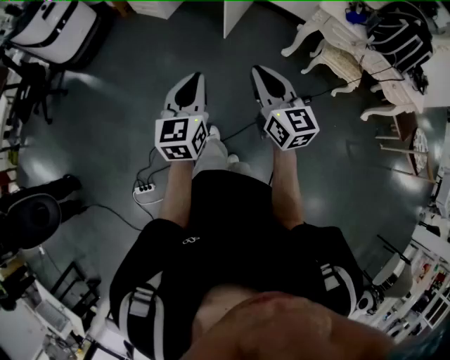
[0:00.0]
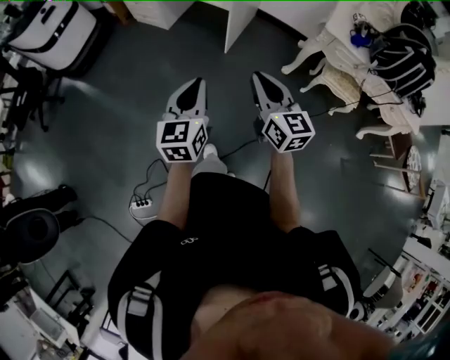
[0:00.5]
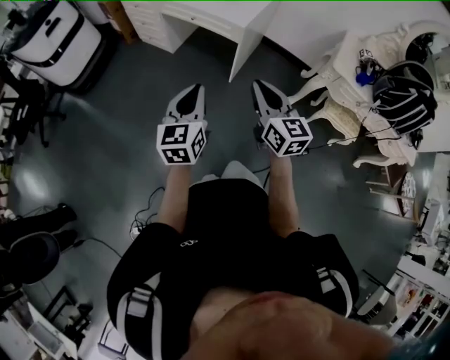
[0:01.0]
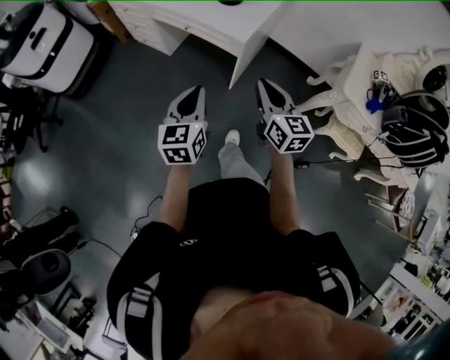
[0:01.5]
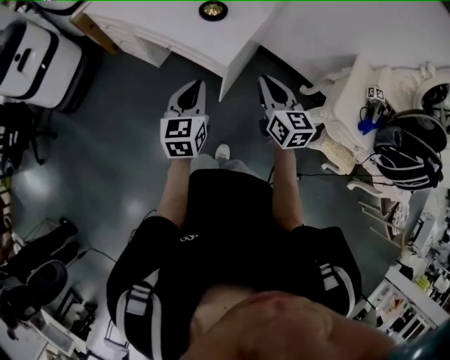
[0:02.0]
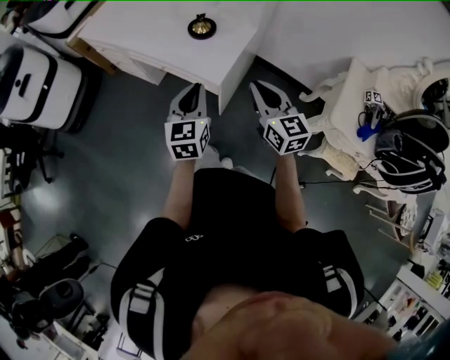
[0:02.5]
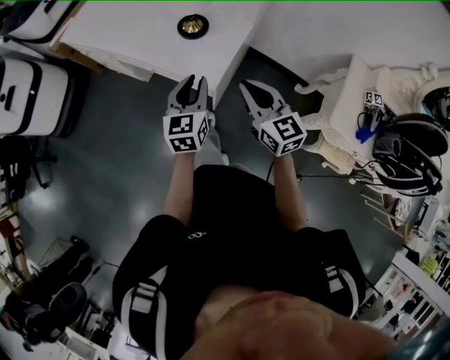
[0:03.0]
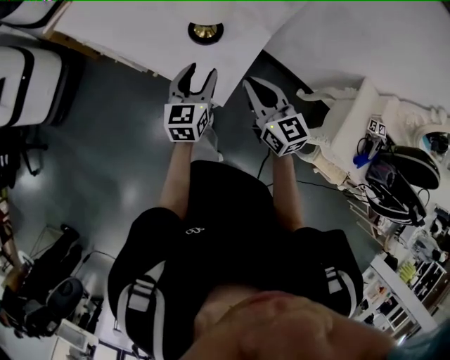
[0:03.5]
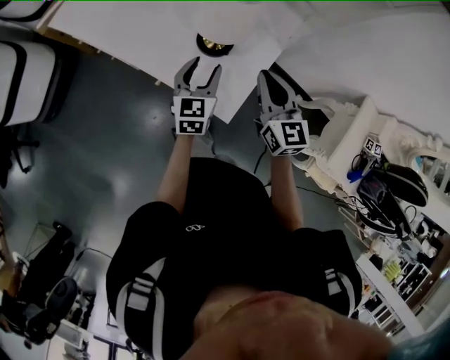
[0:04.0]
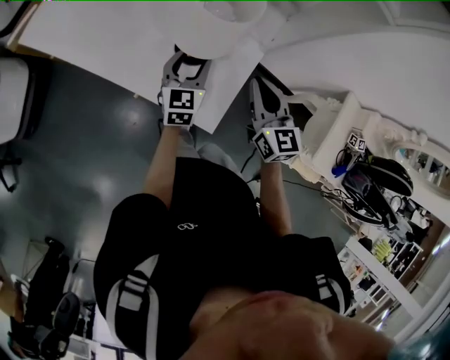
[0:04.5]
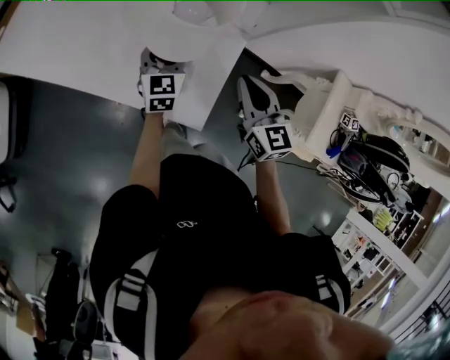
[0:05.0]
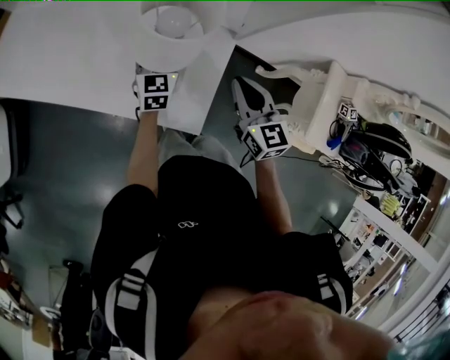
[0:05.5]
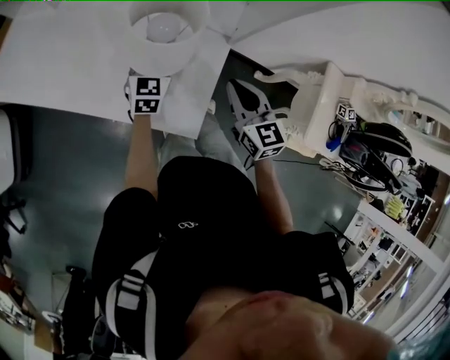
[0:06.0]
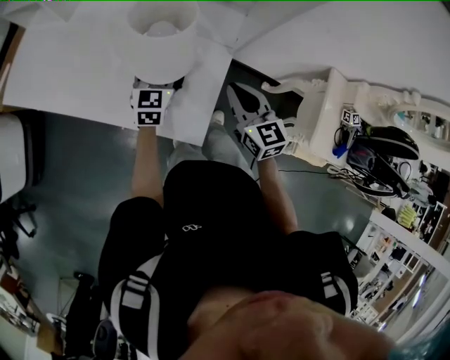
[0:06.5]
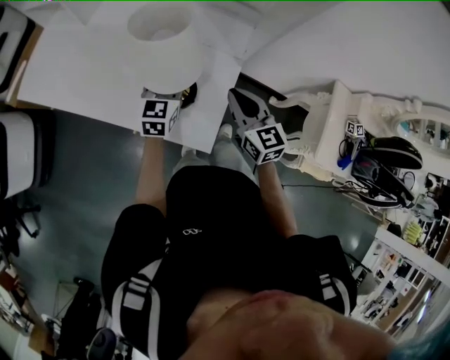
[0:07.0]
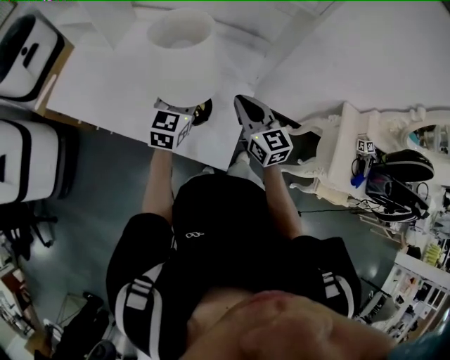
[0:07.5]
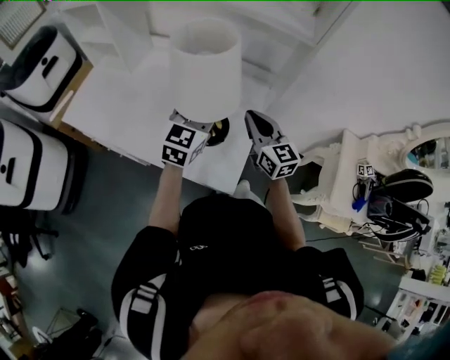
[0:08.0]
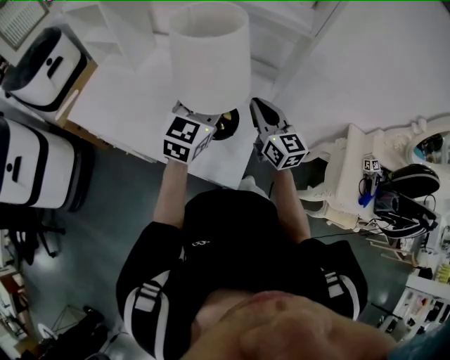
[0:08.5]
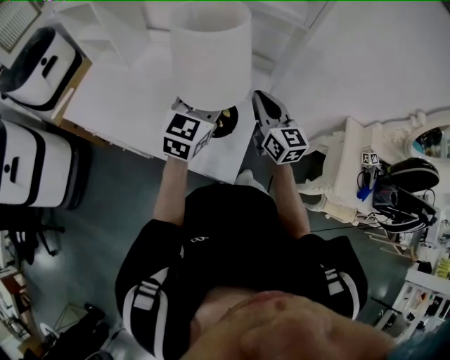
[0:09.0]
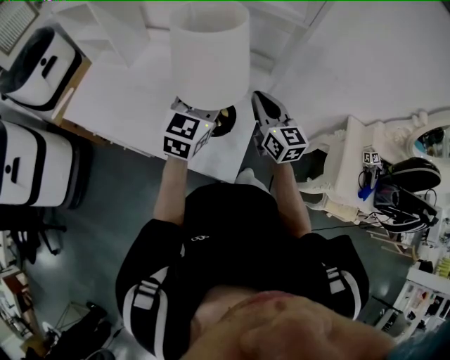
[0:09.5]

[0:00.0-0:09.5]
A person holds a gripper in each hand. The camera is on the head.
0:00.0 to 0:02.0: The pair of grippers is taken forward, roughly 60 cm.
0:02.0 to 0:04.0: The two grippers go roughly 35 cm forward. The left gripper opens.
0:04.0 to 0:05.5: The right gripper goes some 5 cm downward, while the left gripper moves forward and downward, roughly 15 cm.
0:05.5 to 0:07.5: The left gripper is displaced upward by about 20 cm. Meanwhile the right gripper moves upward, roughly 10 cm.
0:07.5 to 0:09.5: The left gripper is displaced upward by about 10 cm. Meanwhile the right gripper is displaced upward by about 5 cm.

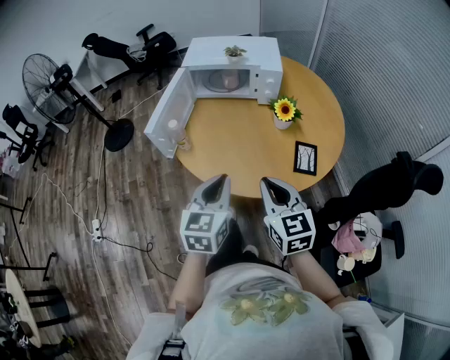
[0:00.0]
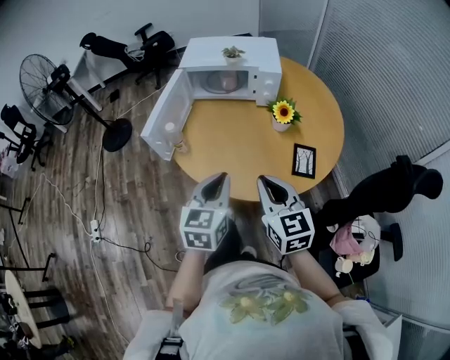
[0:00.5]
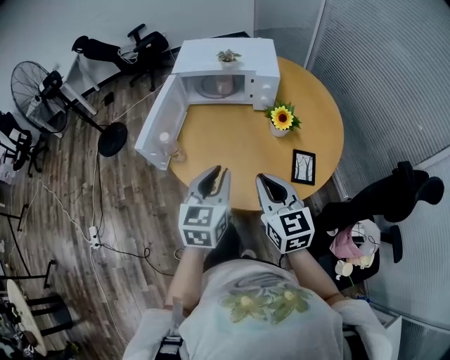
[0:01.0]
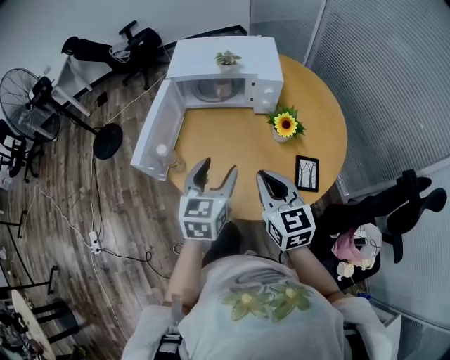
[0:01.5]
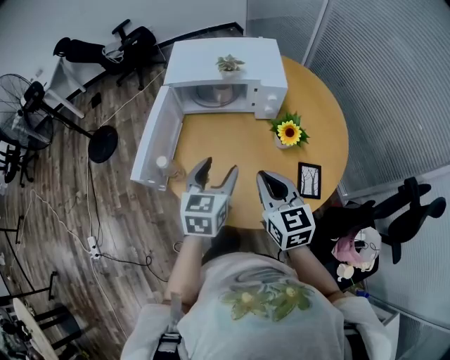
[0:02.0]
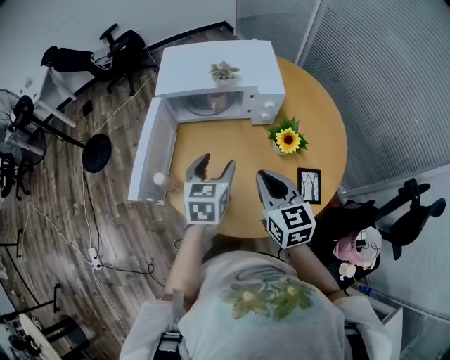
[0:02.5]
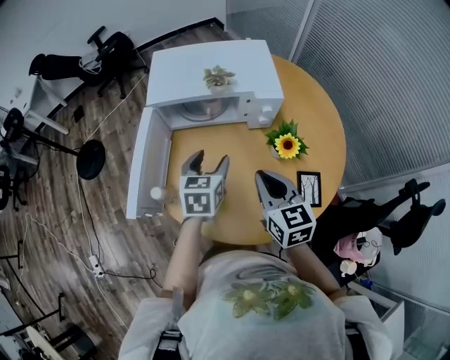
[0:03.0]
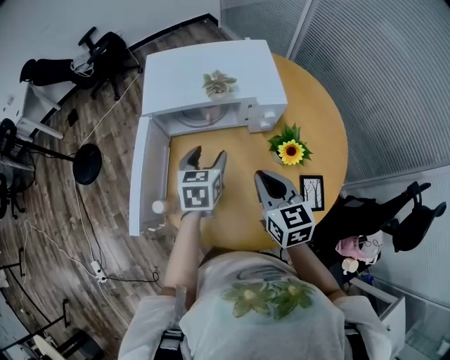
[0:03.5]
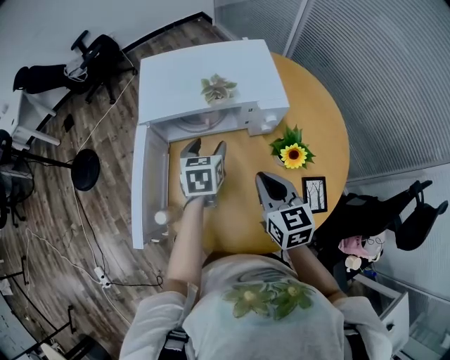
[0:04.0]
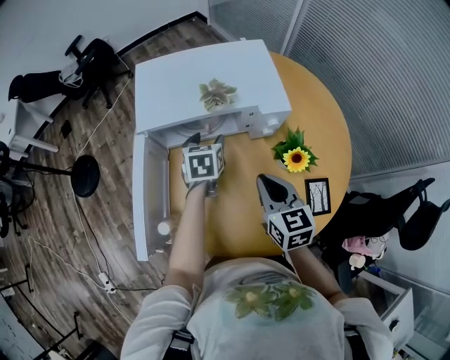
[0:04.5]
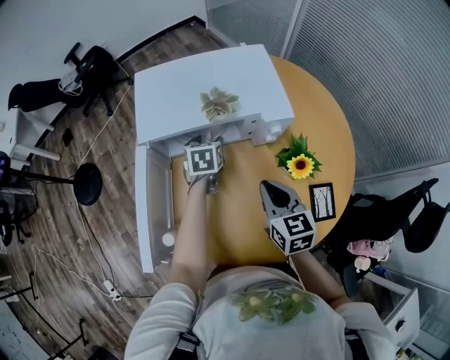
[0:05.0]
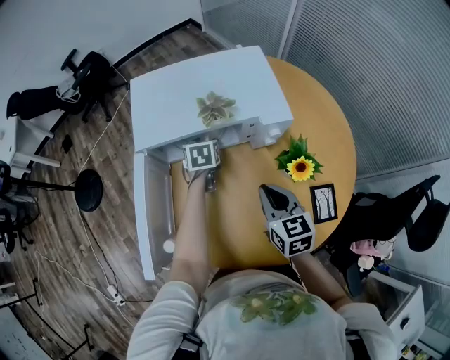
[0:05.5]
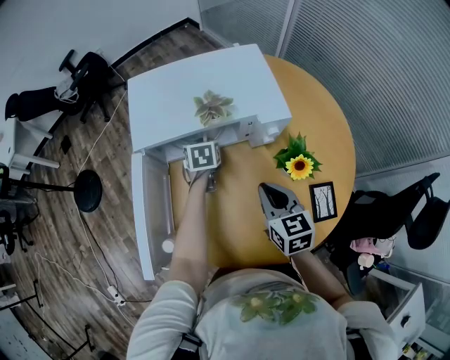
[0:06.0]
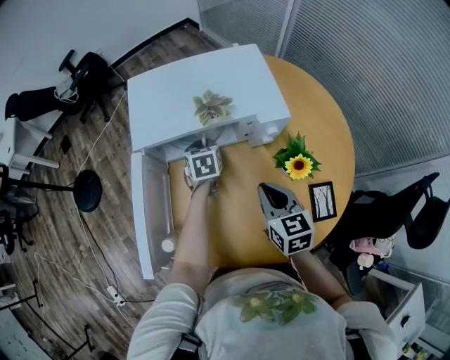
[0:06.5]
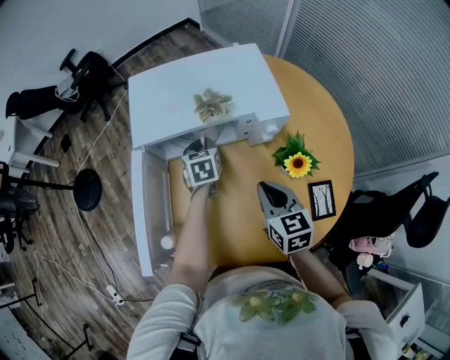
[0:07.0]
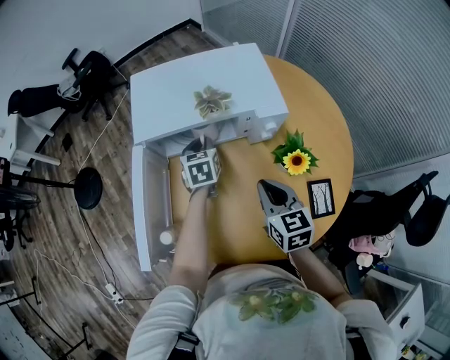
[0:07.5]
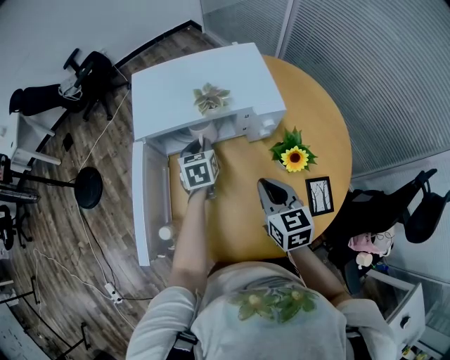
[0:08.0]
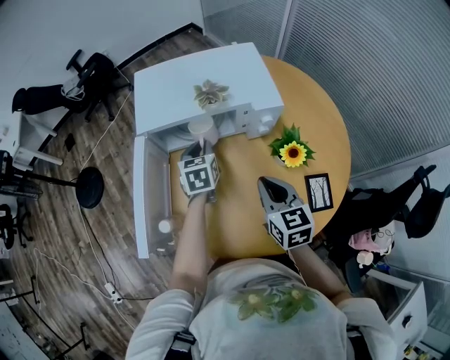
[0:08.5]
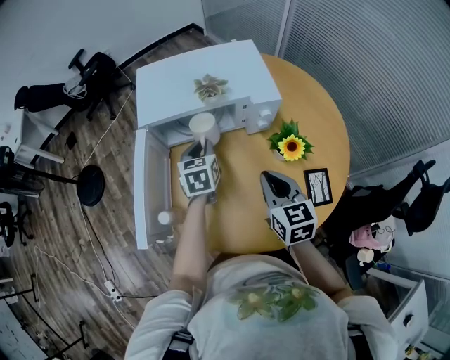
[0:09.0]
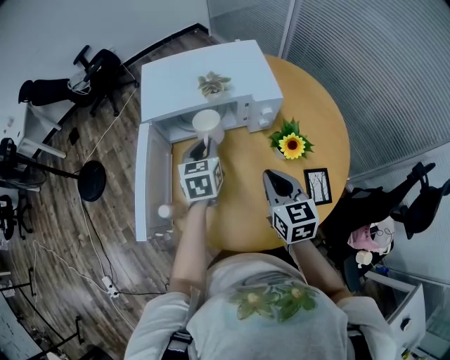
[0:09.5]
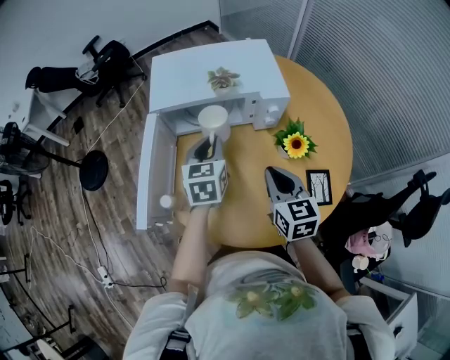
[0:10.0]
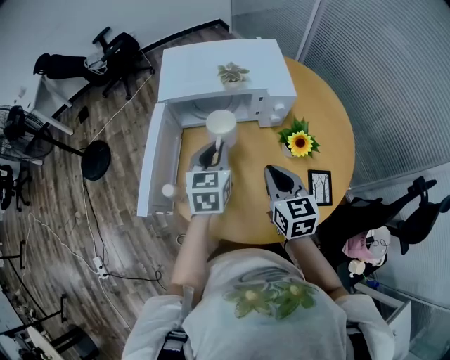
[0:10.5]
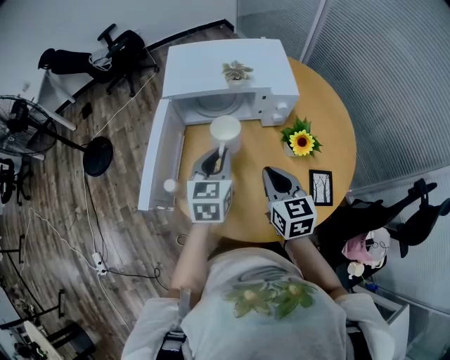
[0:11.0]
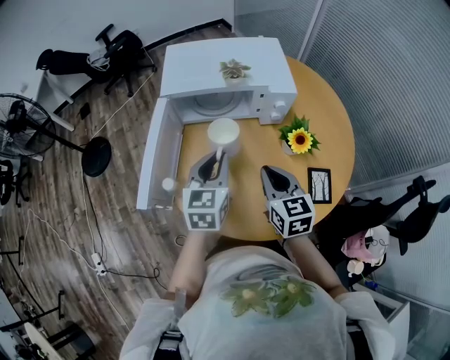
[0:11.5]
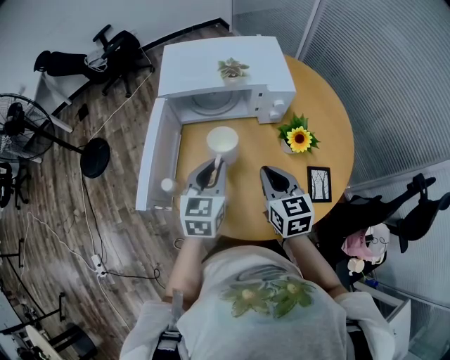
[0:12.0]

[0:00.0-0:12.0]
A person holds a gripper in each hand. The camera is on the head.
0:00.0 to 0:02.0: Both grippers move forward, some 20 cm. The left gripper opens.
0:02.0 to 0:04.0: The left gripper goes about 25 cm forward. Meanwhile the right gripper goes about 15 cm forward.
0:04.0 to 0:06.0: The left gripper heads forward and downward, covering approximately 15 cm, and closes its fingers. Meanwhile the right gripper moves downward, about 5 cm.
0:06.0 to 0:08.0: The left gripper moves upward, approximately 5 cm.
0:08.0 to 0:10.0: The right gripper moves approximately 5 cm; the left gripper is displaced backward and upward by roughly 15 cm.
0:10.0 to 0:12.0: The left gripper travels backward by approximately 10 cm.

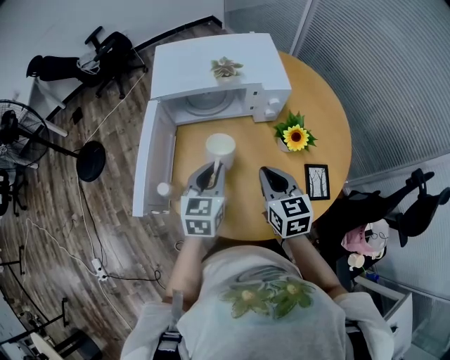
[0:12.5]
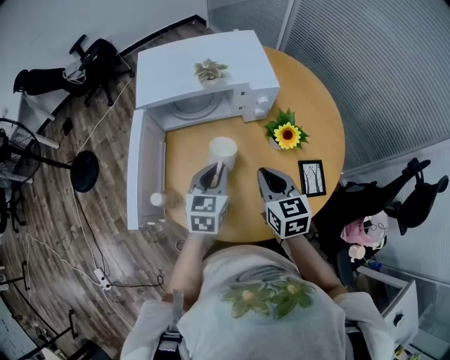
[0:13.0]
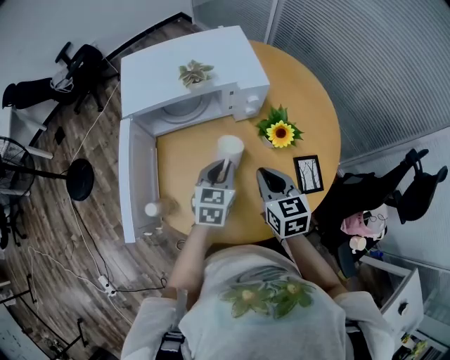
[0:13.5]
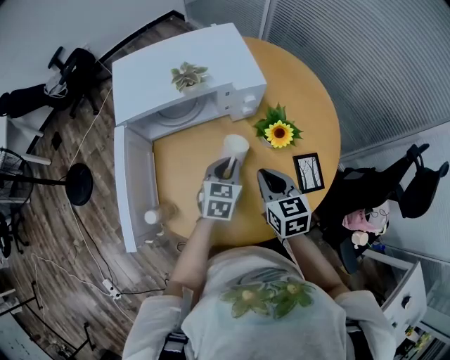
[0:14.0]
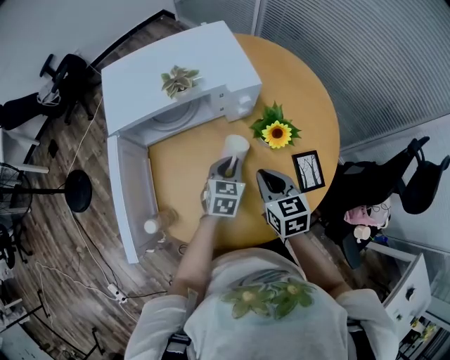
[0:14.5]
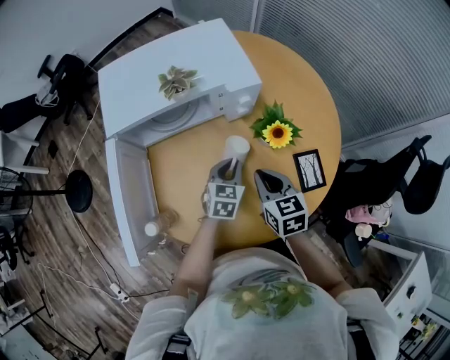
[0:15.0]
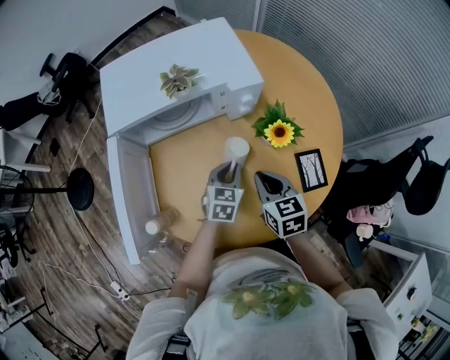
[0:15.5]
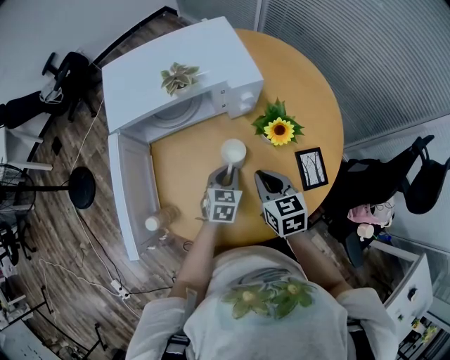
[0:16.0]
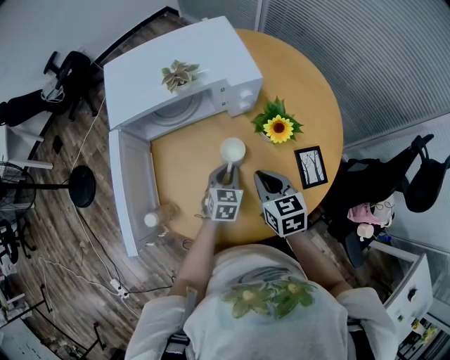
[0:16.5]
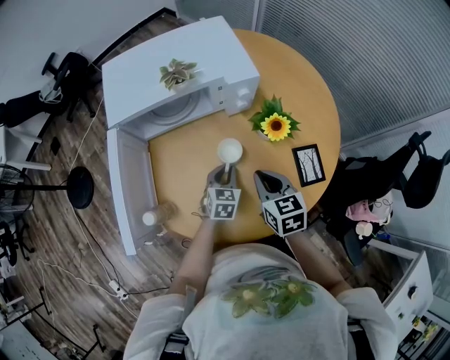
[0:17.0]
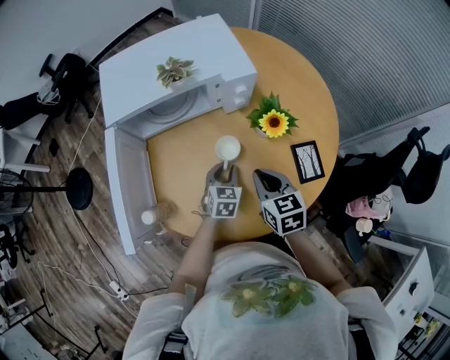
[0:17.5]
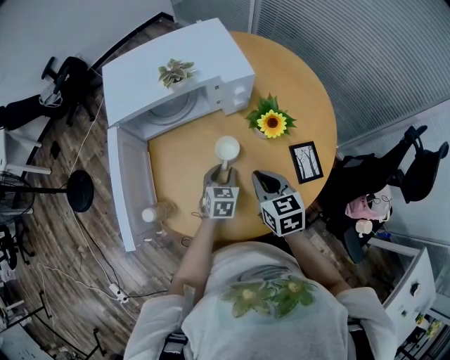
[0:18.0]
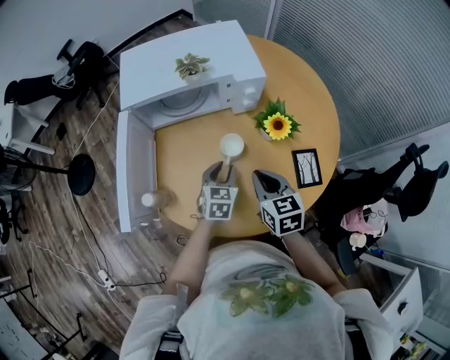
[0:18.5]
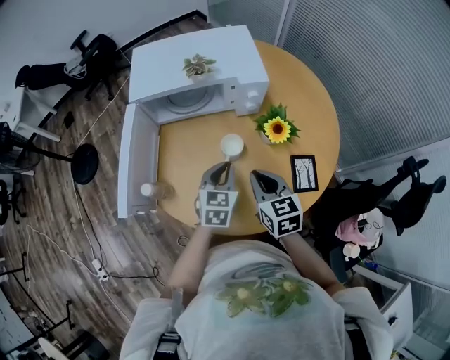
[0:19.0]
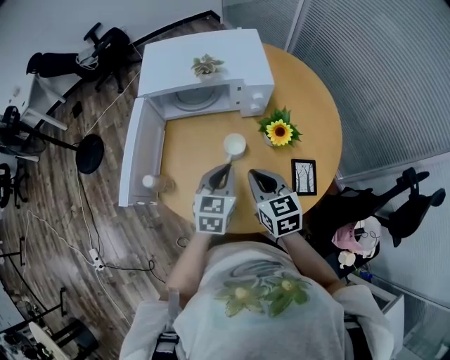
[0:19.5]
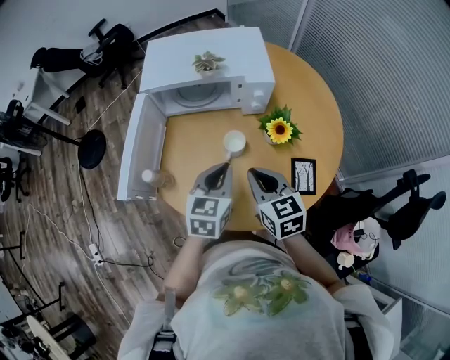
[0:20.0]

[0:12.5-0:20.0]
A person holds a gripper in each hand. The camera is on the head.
0:12.5 to 0:14.5: The left gripper shifts roughly 20 cm downward, to the right and forward, and rotates approximately 20 degrees; the right gripper travels downward by roughly 5 cm.
0:14.5 to 0:16.5: The left gripper changes place by some 5 cm.
0:16.5 to 0:18.0: The grippers stay close to where they were, moving slightly.
0:18.0 to 0:20.0: The left gripper is displaced upward by roughly 20 cm, and closes; the right gripper heads upward, covering roughly 10 cm.
